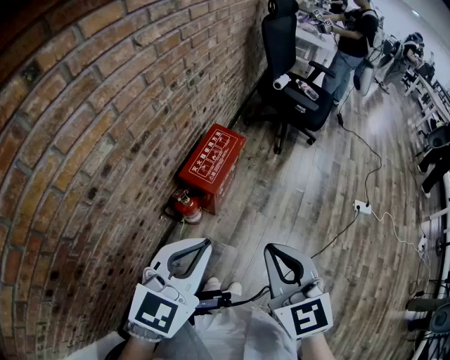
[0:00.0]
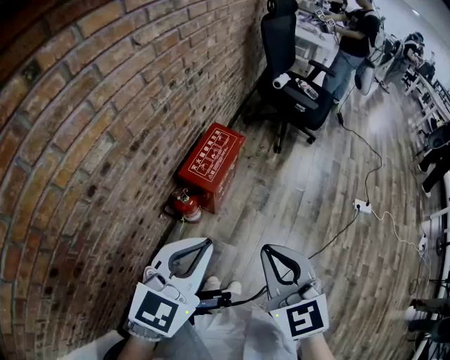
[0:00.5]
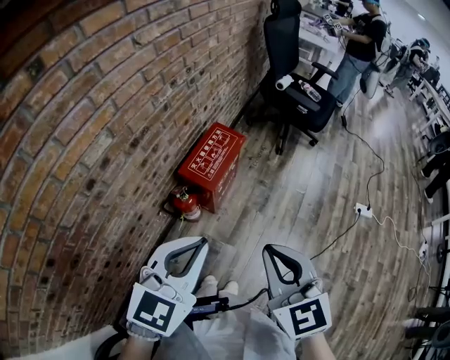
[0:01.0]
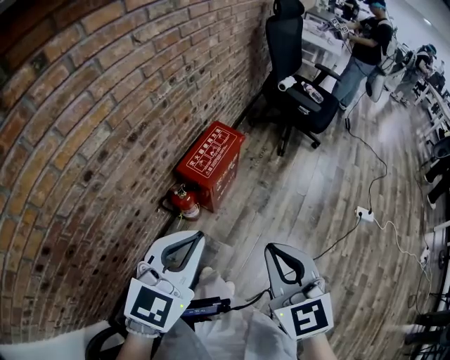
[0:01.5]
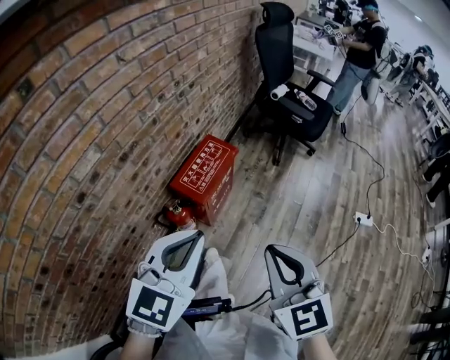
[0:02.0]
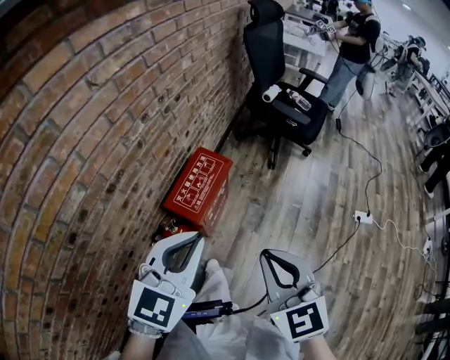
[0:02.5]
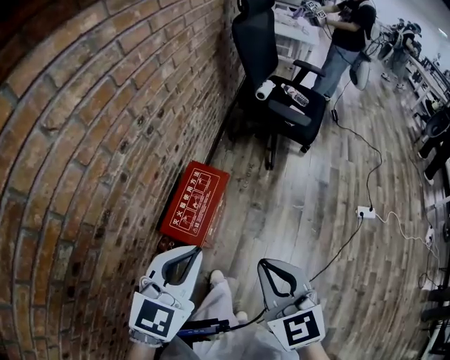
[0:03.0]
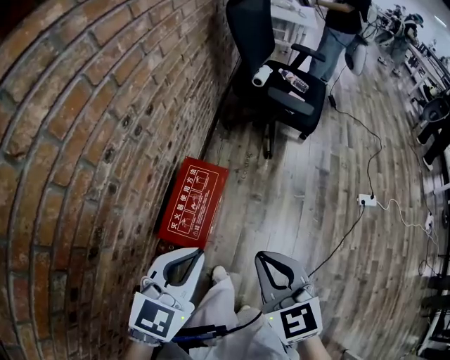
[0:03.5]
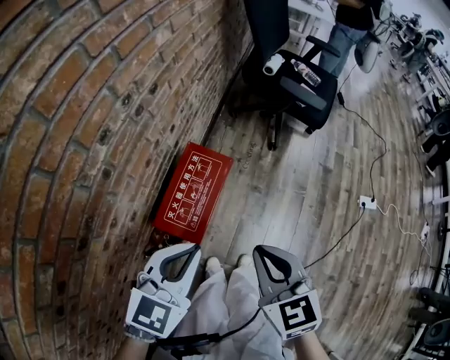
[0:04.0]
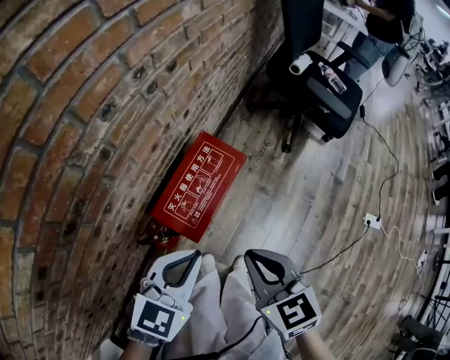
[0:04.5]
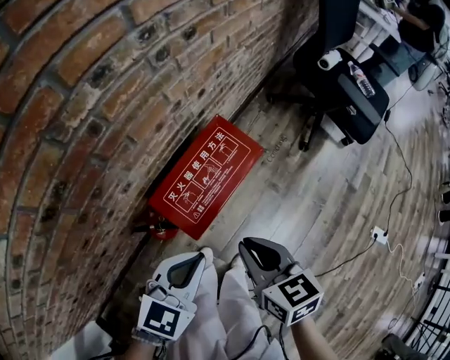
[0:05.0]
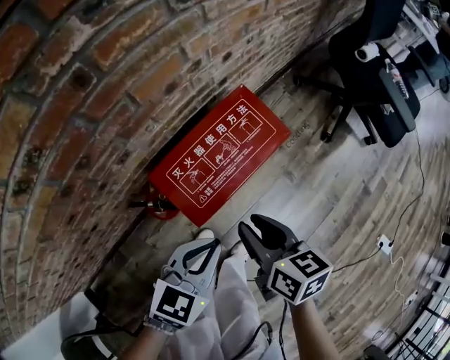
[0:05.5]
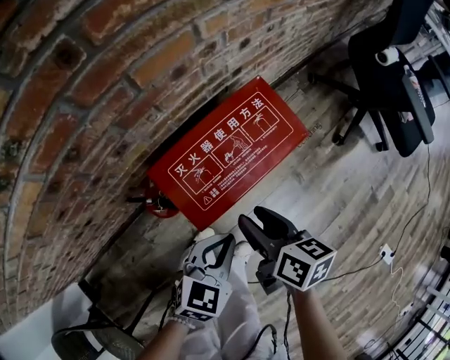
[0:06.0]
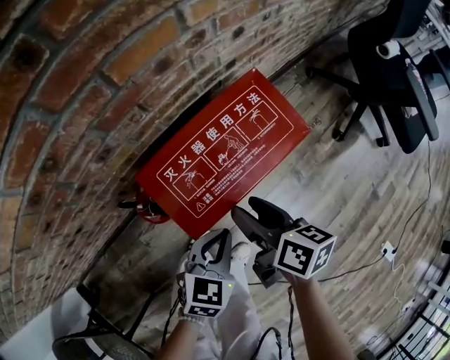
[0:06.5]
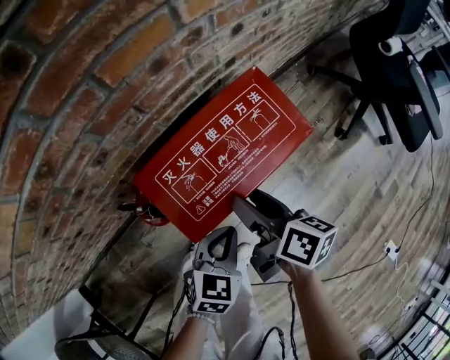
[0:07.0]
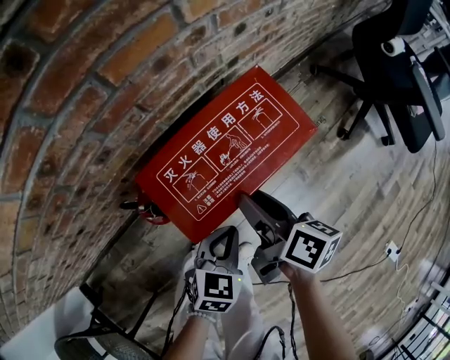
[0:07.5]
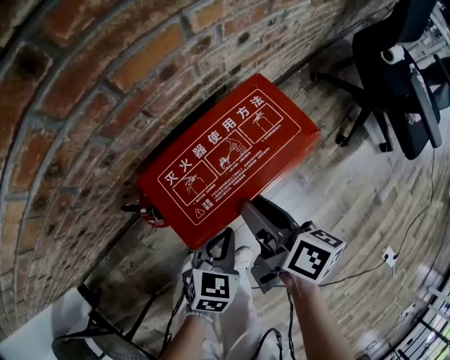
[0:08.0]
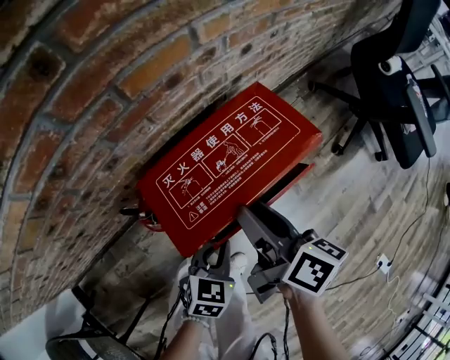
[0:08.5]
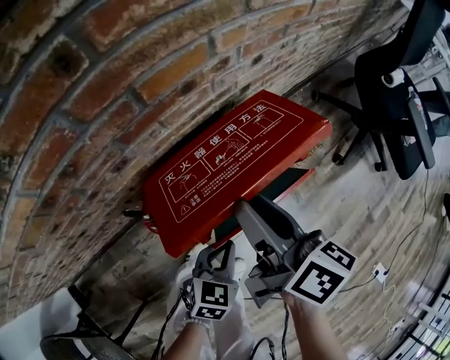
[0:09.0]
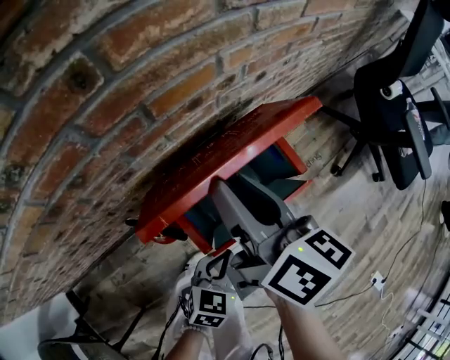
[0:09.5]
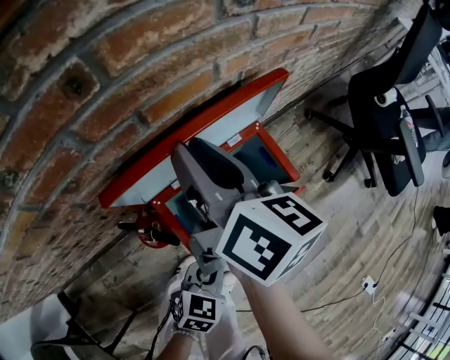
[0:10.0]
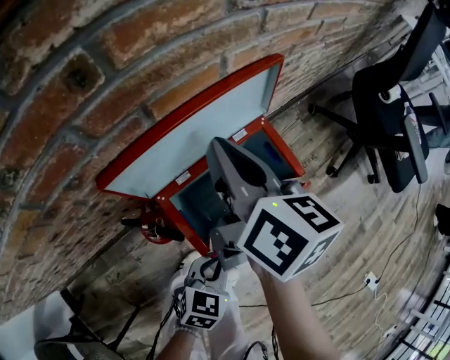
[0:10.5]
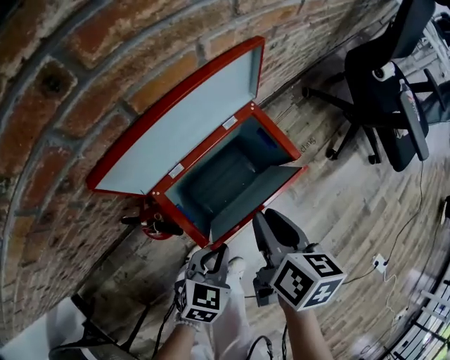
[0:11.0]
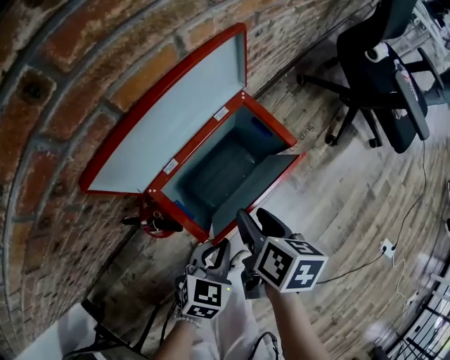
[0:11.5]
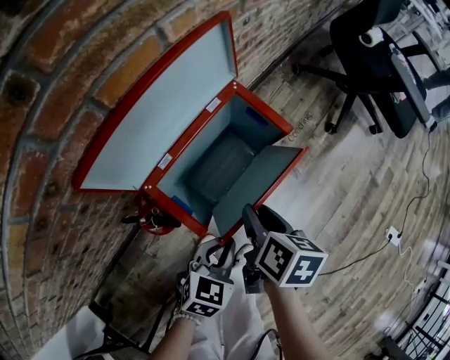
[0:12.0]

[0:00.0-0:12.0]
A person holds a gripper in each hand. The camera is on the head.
0:00.0 to 0:02.0: The grippers both shift to the right by roughly 5 cm.
0:02.0 to 0:04.0: The two grippers go approximately 30 cm forward and downward.
0:04.0 to 0:06.0: The grippers both shift downward by approximately 30 cm. The right gripper rotates about 50 degrees, and opens up; the left gripper rotates some 40 degrees.
0:06.0 to 0:08.0: The left gripper is displaced downward by about 10 cm; the right gripper moves some 5 cm.
0:08.0 to 0:10.0: The right gripper travels upward, forward and to the left by approximately 25 cm, and turns by approximately 20 degrees.
0:10.0 to 0:12.0: The right gripper shifts approximately 30 cm downward, to the right and backward, tilts its fingers roughly 40 degrees downward, and closes, then reopens.

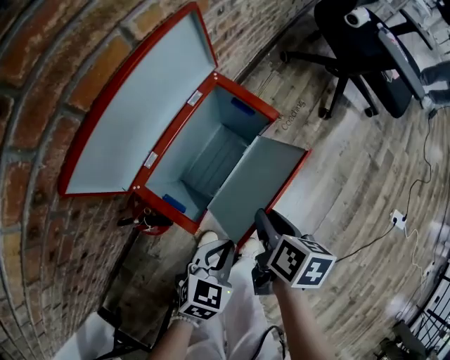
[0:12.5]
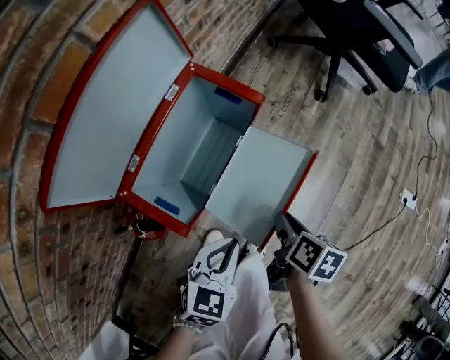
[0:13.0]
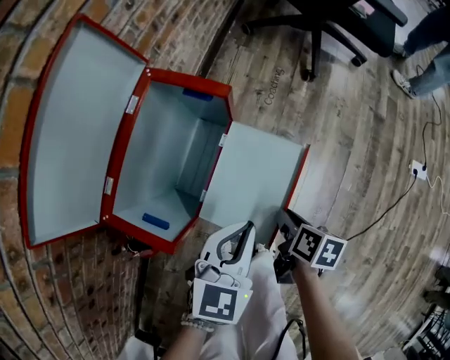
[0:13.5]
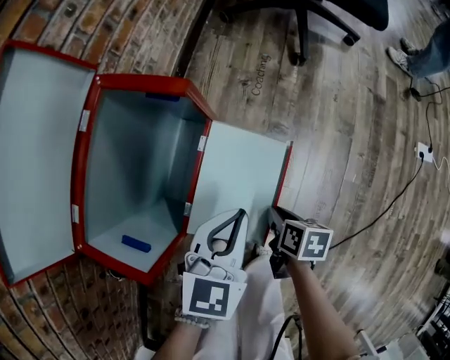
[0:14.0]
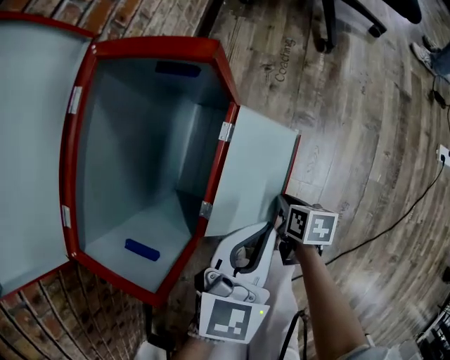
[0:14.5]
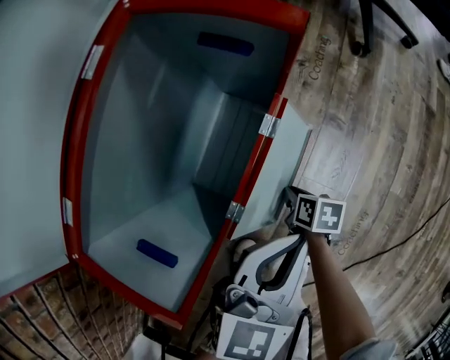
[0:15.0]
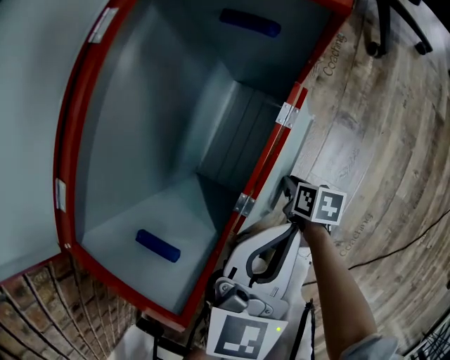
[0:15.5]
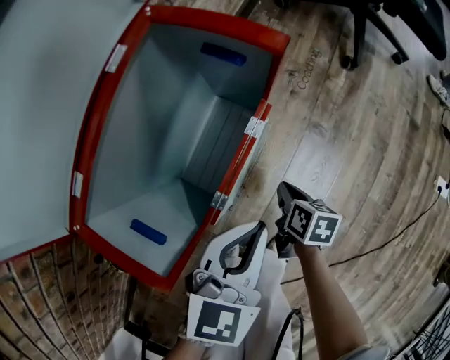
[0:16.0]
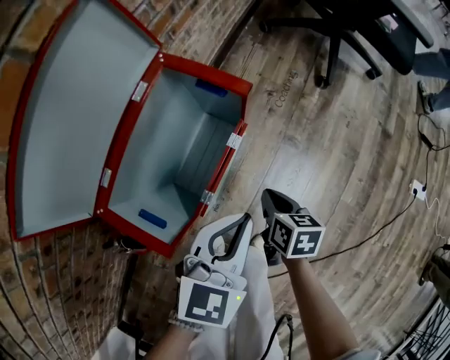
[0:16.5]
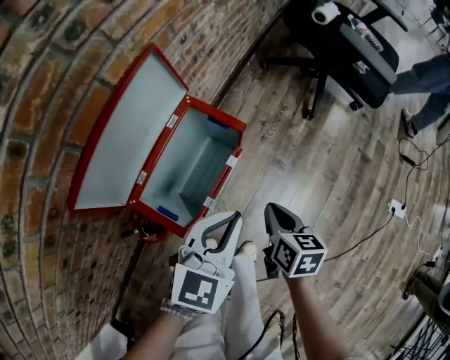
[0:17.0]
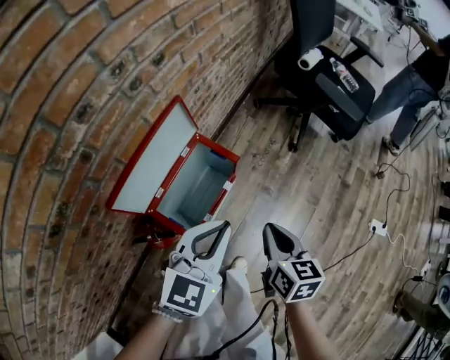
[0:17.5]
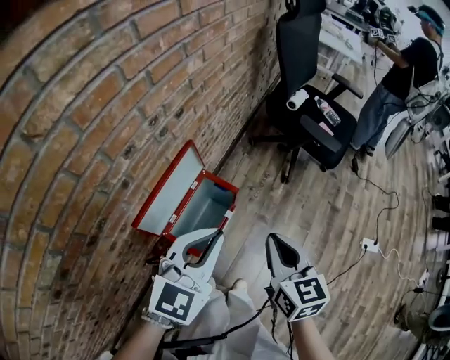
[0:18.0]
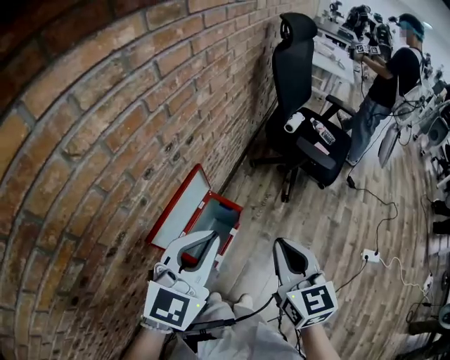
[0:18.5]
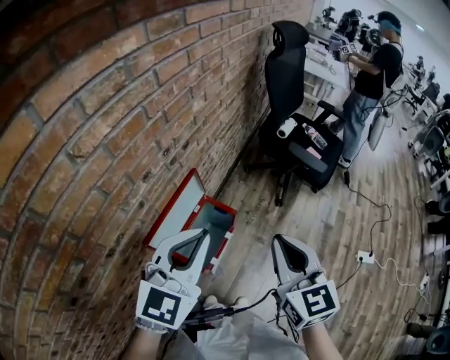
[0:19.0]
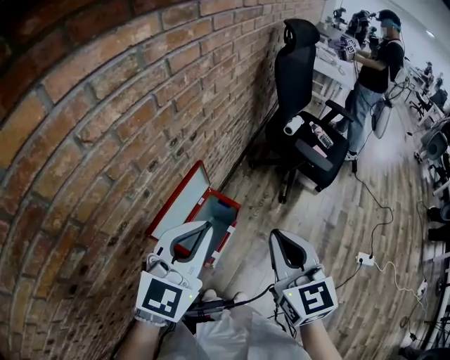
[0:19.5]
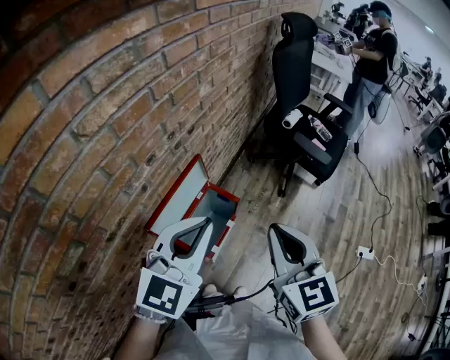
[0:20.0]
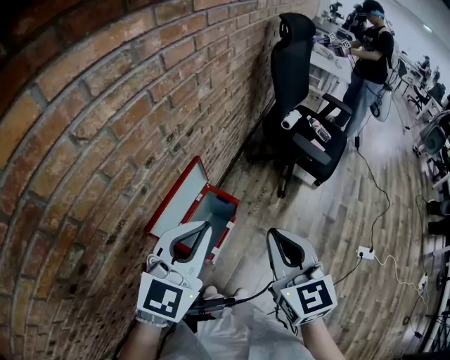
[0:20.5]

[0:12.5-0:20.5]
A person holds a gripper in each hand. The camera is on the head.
0:12.5 to 0:14.5: The right gripper moves downward, some 35 cm. Meanwhile the left gripper shifts some 15 cm forward, downward and to the right.
0:14.5 to 0:16.5: The right gripper goes roughly 15 cm upward, and swivels some 20 degrees. The left gripper moves upward, roughly 10 cm.
0:16.5 to 0:18.5: The grippers both shift upward by some 60 cm. The left gripper turns by about 30 degrees; the right gripper angles its fingers upward, by approximately 30 degrees.
0:18.5 to 0:20.5: The grippers make only small movements.

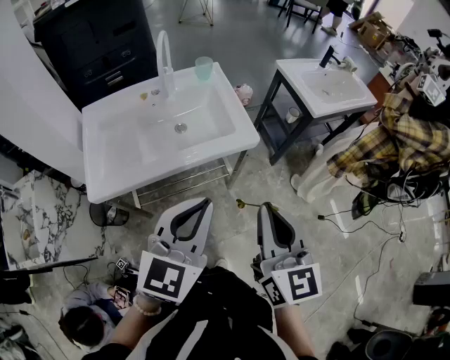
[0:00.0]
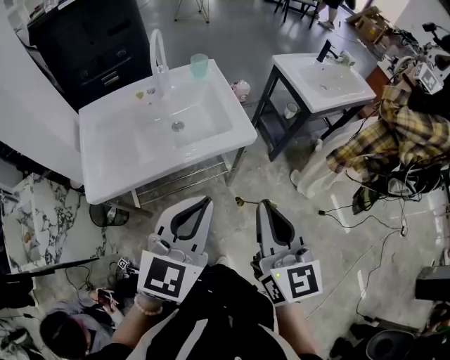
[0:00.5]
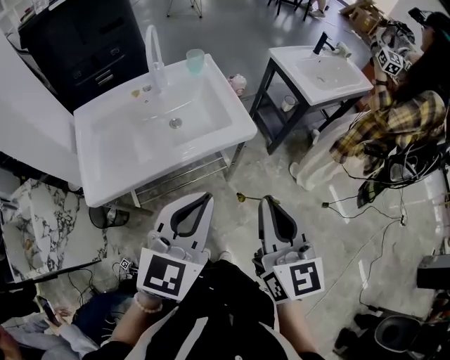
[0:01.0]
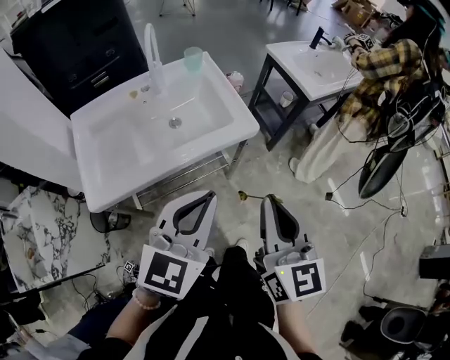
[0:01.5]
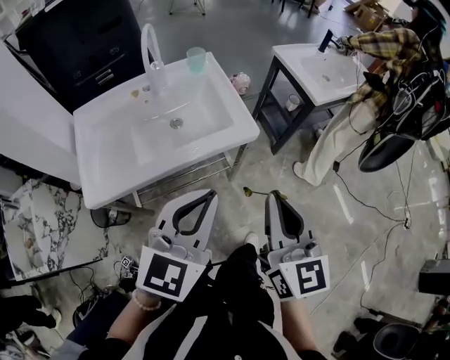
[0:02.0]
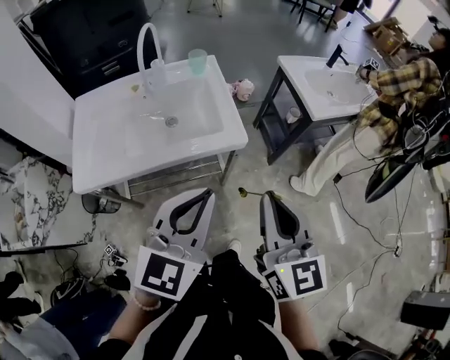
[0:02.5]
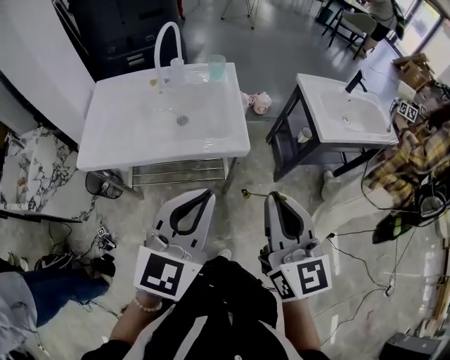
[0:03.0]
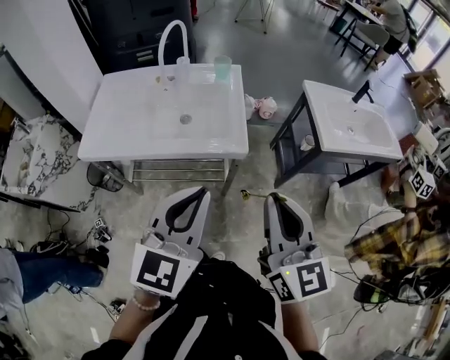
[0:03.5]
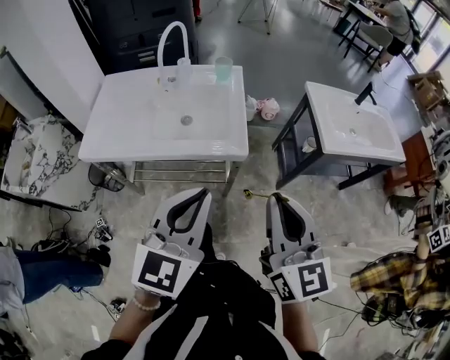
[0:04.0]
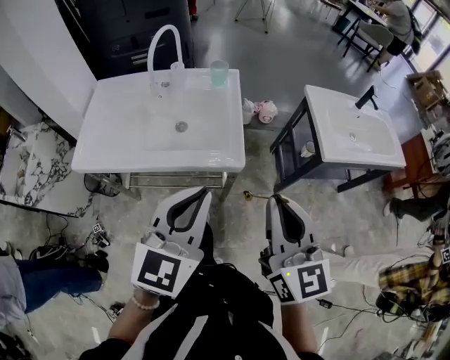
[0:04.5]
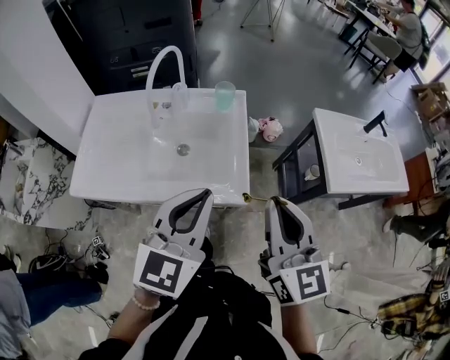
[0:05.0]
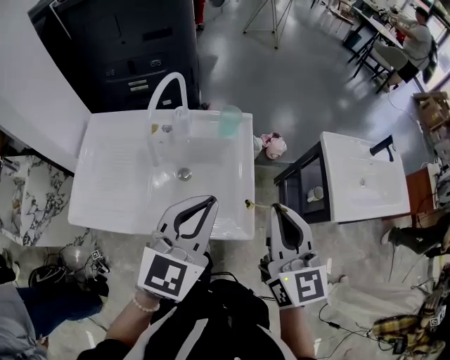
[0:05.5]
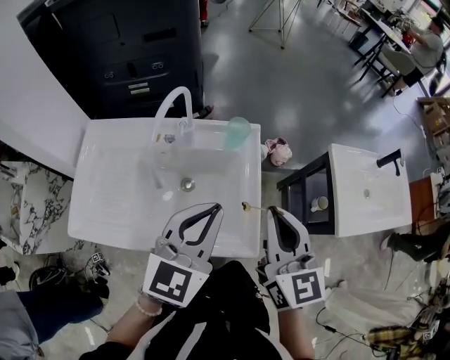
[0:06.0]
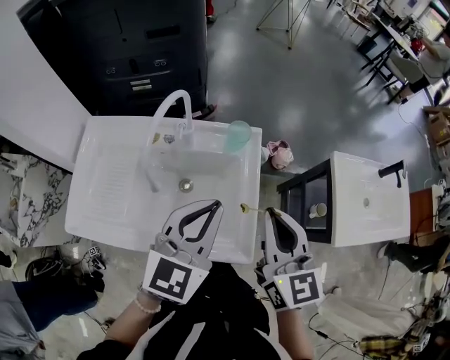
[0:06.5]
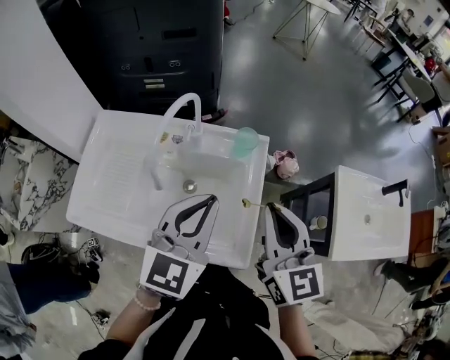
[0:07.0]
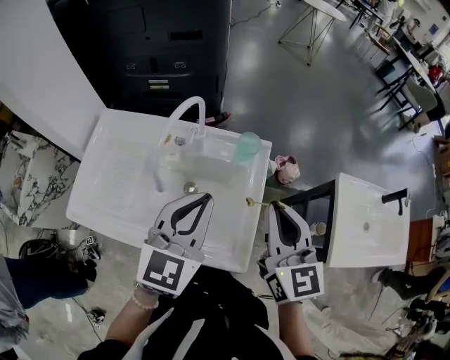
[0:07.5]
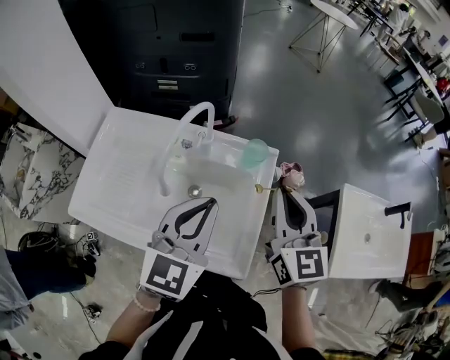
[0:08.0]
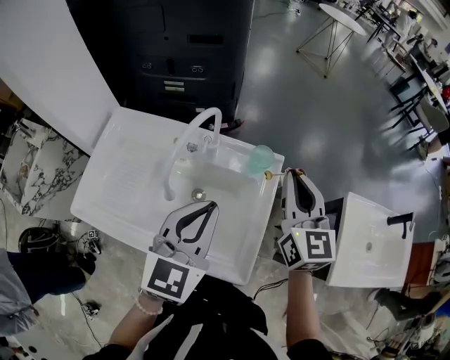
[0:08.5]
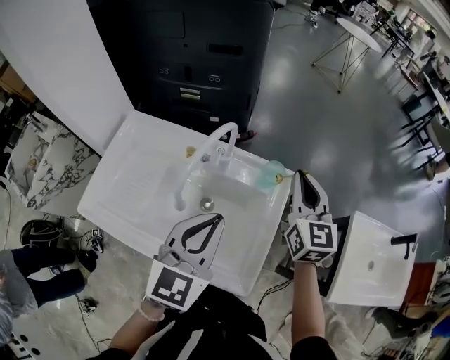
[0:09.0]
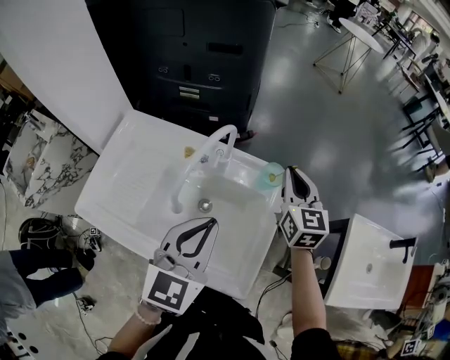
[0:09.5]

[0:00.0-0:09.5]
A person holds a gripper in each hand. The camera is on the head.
0:00.0 to 0:02.0: The grippers stay close to where they were, moving slightly.
0:02.0 to 0:04.0: The right gripper changes place by some 15 cm, and turns by roughly 30 degrees; the left gripper moves about 10 cm, and swivels about 30 degrees.
0:04.0 to 0:05.5: The grippers both shift forward by about 25 cm.
0:05.5 to 0:07.5: The grippers both shift forward by approximately 10 cm.
0:07.5 to 0:09.5: The right gripper moves forward, about 20 cm.
